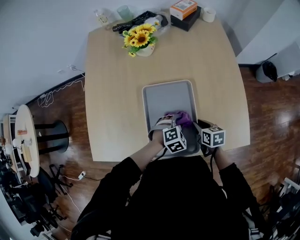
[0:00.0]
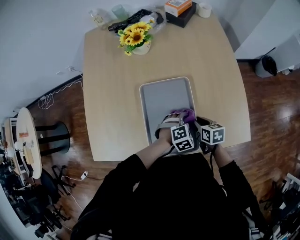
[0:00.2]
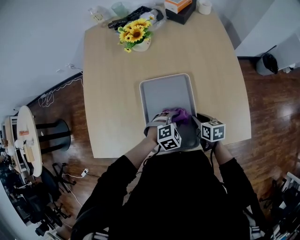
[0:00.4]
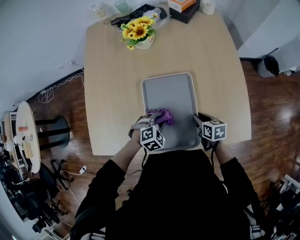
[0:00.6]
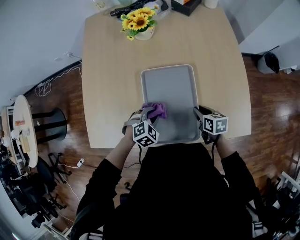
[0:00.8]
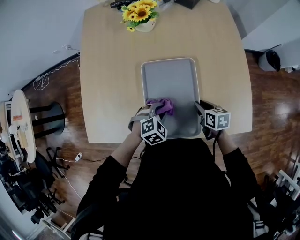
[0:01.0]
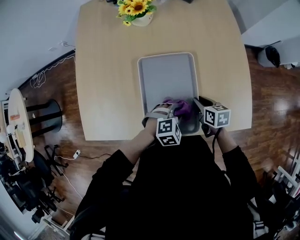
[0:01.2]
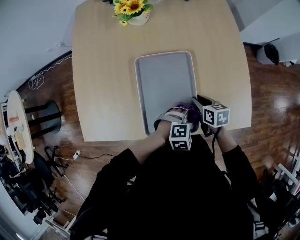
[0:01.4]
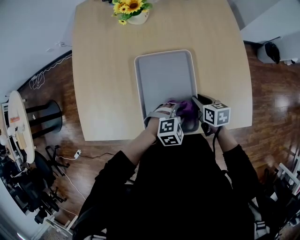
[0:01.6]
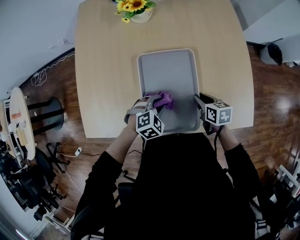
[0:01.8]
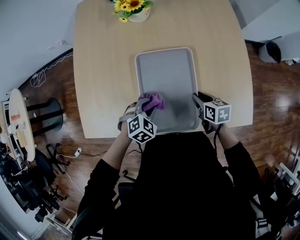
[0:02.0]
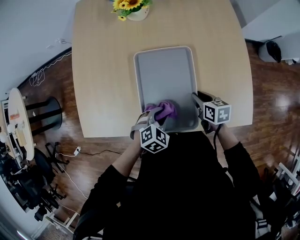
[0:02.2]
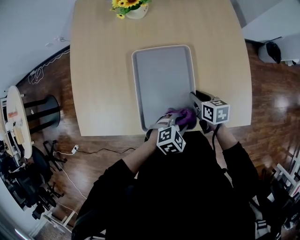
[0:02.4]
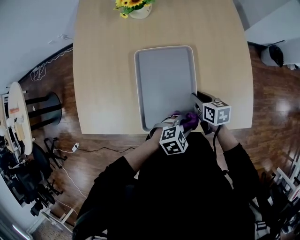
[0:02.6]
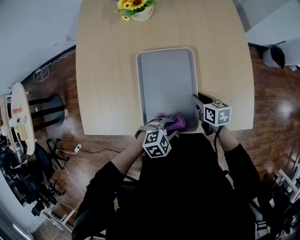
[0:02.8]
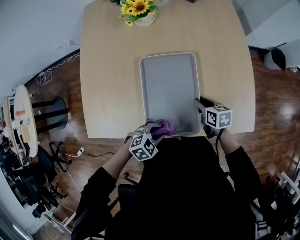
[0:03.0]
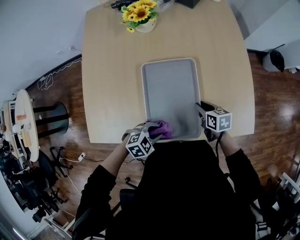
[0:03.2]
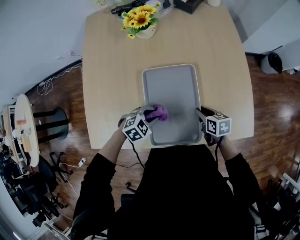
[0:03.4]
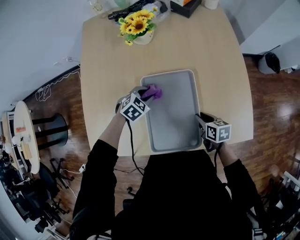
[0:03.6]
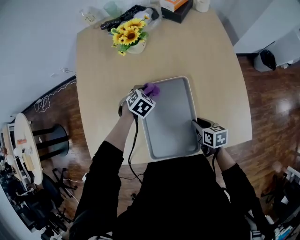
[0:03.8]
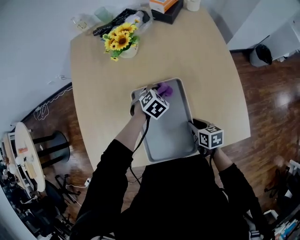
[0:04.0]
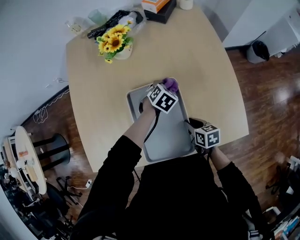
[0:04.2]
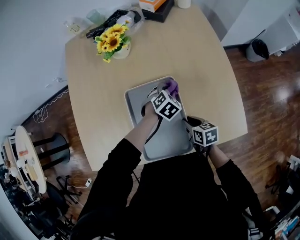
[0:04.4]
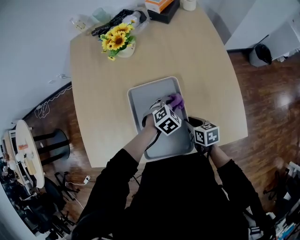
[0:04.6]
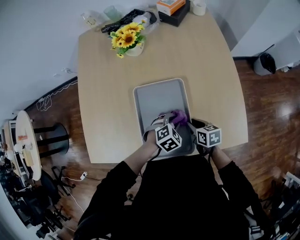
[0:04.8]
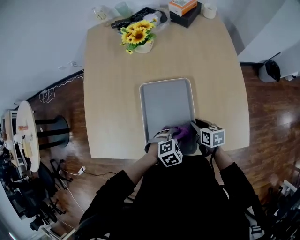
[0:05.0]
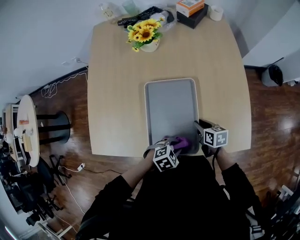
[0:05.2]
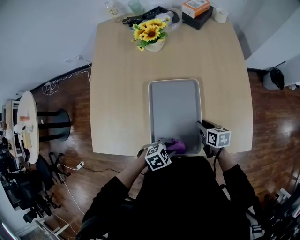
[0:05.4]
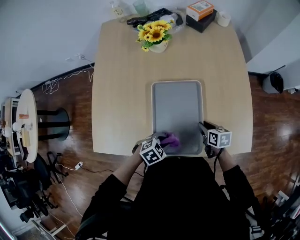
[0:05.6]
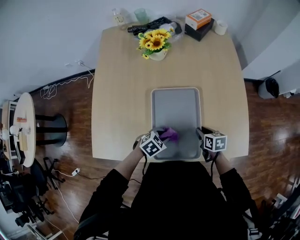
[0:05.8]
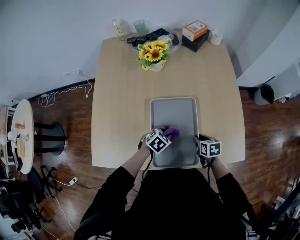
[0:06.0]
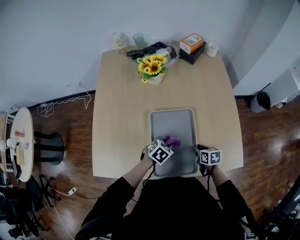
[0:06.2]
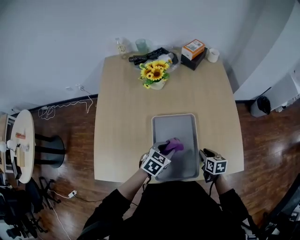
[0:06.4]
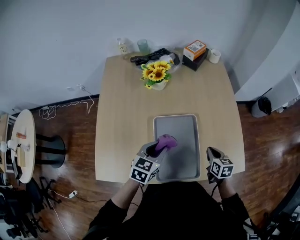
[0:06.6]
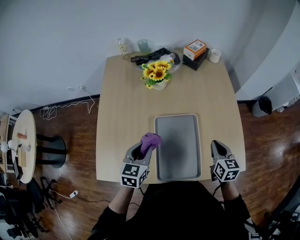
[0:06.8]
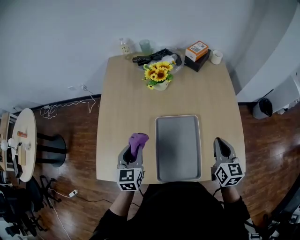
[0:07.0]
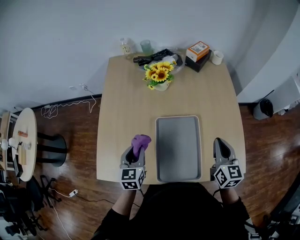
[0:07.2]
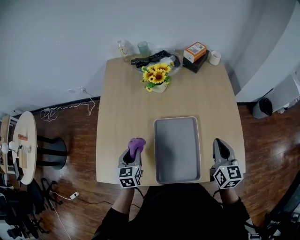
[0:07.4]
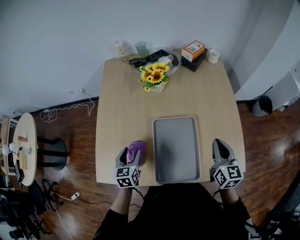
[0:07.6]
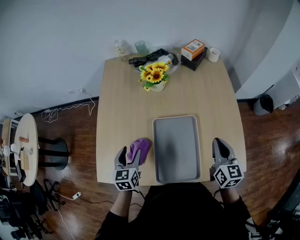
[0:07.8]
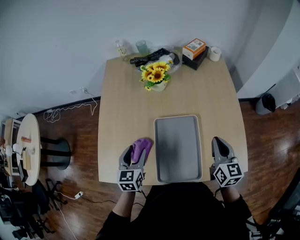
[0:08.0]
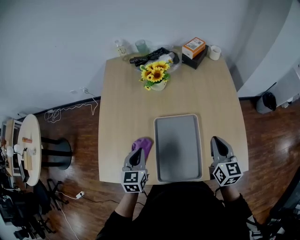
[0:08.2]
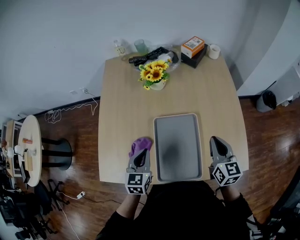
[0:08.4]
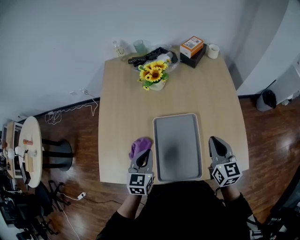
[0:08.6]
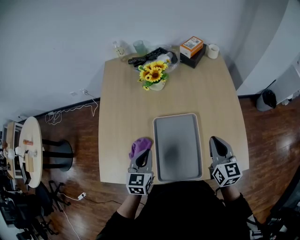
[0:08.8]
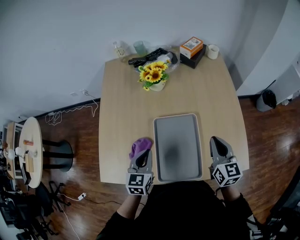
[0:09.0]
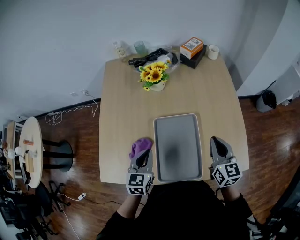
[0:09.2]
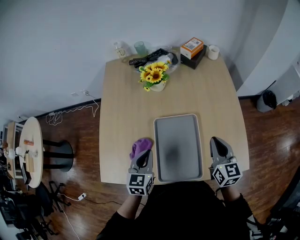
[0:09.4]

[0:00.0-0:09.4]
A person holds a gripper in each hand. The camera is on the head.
0:00.0 to 0:01.6: The left gripper goes left and right, some 20 cm each way, reversing 3 times.
0:01.6 to 0:03.2: The left gripper changes place by approximately 15 cm.
0:03.2 to 0:04.8: The left gripper heads forward and to the right, covering about 20 cm.
0:04.8 to 0:06.2: The left gripper changes its angle by approximately 20 degrees.
0:06.2 to 0:07.8: The left gripper goes roughly 25 cm to the left and upward, rotates roughly 50 degrees, and opens its fingers; the right gripper goes some 25 cm upward, angles its fingers upward, by about 40 degrees, and closes.
0:07.8 to 0:09.4: The left gripper shifts approximately 10 cm to the right, and closes up.

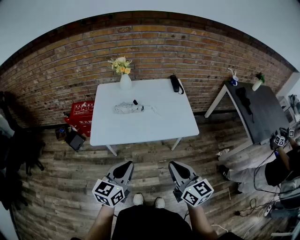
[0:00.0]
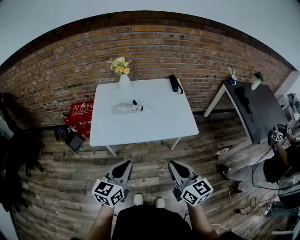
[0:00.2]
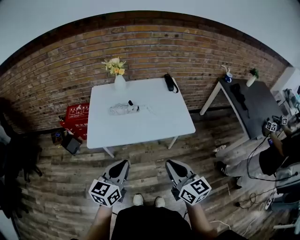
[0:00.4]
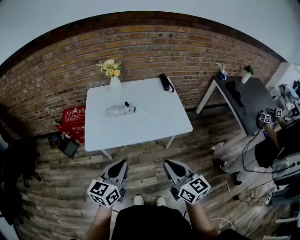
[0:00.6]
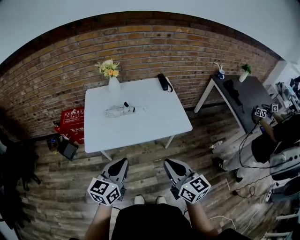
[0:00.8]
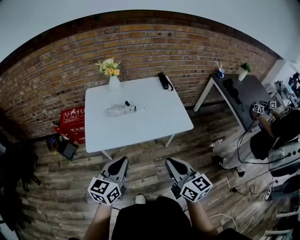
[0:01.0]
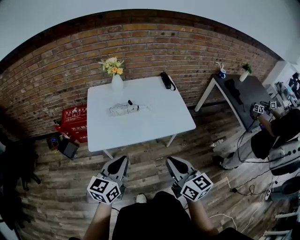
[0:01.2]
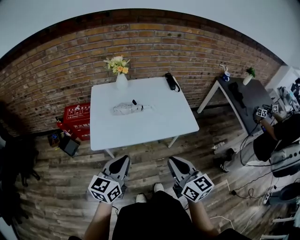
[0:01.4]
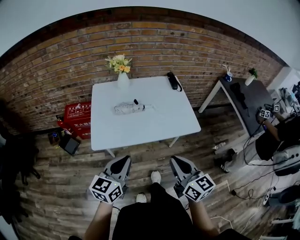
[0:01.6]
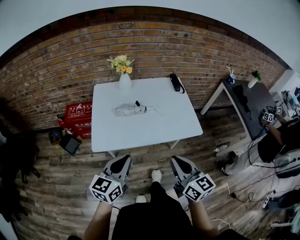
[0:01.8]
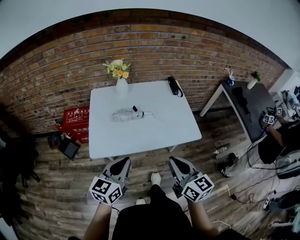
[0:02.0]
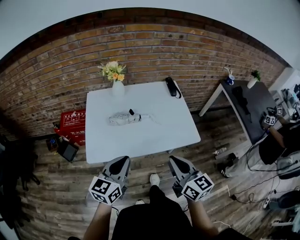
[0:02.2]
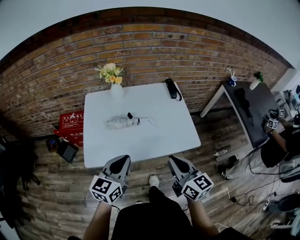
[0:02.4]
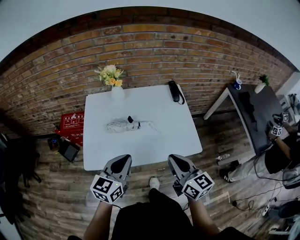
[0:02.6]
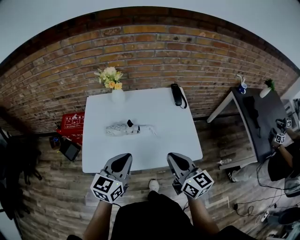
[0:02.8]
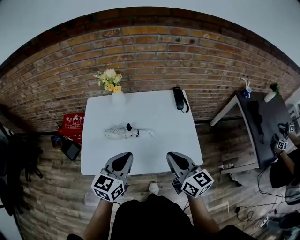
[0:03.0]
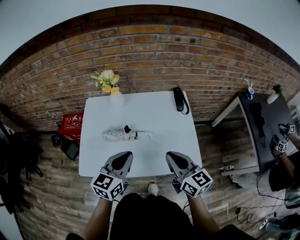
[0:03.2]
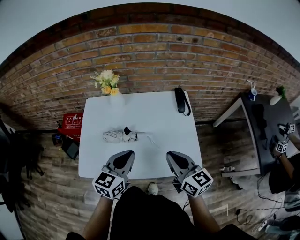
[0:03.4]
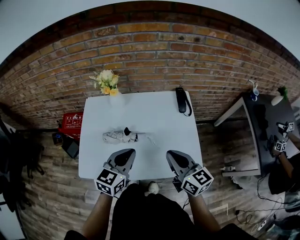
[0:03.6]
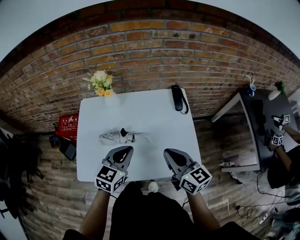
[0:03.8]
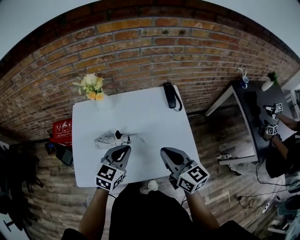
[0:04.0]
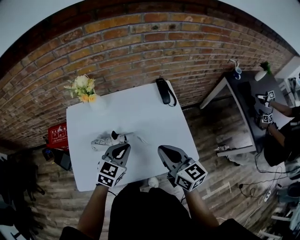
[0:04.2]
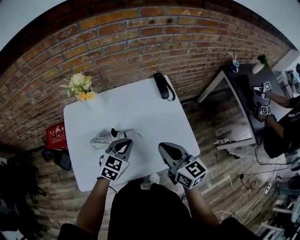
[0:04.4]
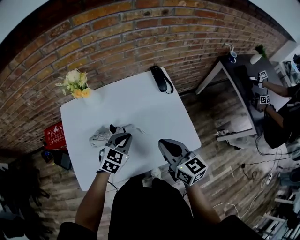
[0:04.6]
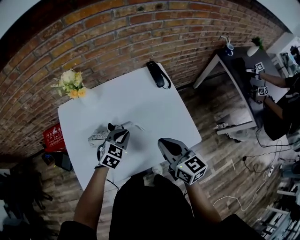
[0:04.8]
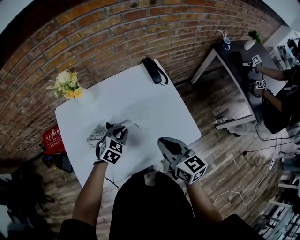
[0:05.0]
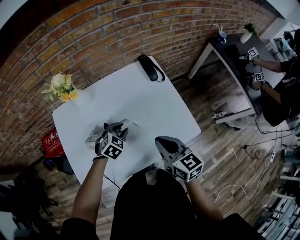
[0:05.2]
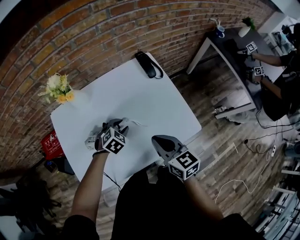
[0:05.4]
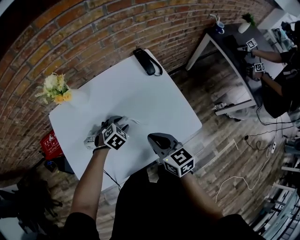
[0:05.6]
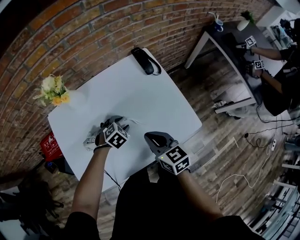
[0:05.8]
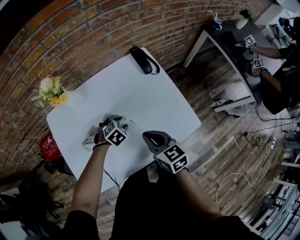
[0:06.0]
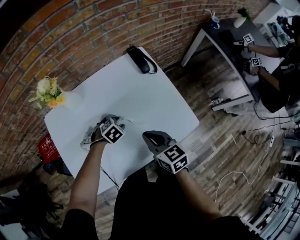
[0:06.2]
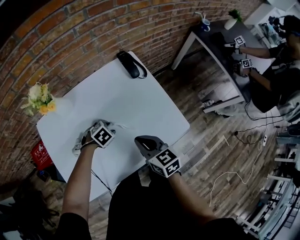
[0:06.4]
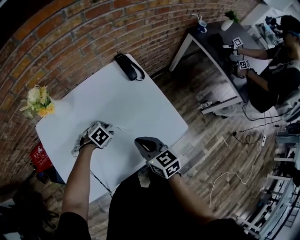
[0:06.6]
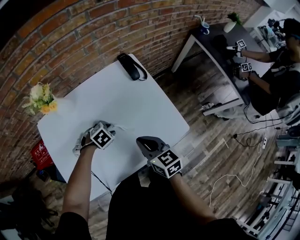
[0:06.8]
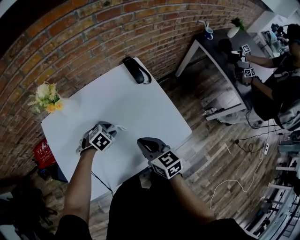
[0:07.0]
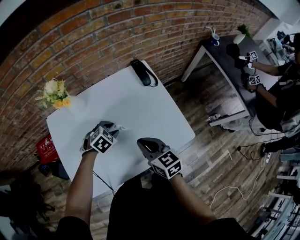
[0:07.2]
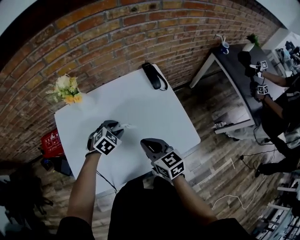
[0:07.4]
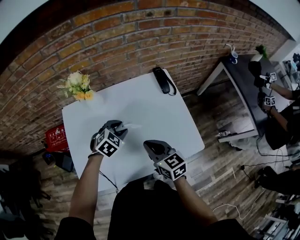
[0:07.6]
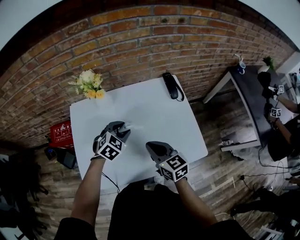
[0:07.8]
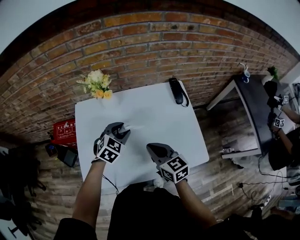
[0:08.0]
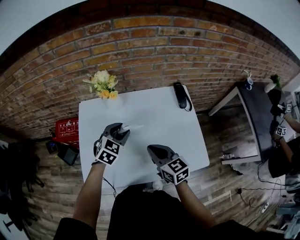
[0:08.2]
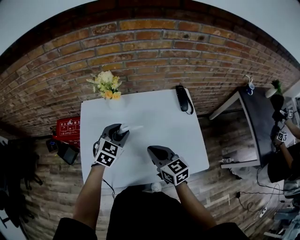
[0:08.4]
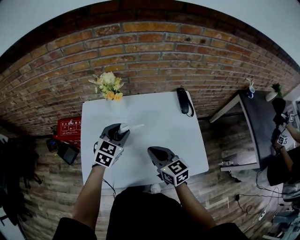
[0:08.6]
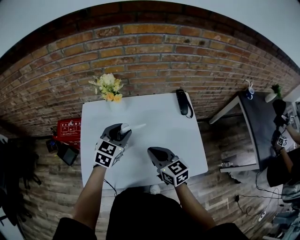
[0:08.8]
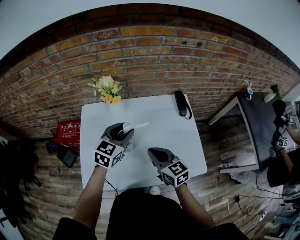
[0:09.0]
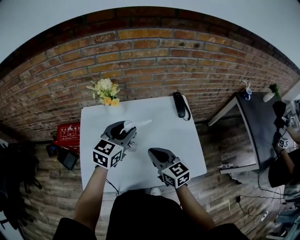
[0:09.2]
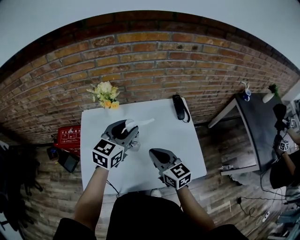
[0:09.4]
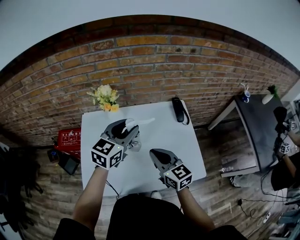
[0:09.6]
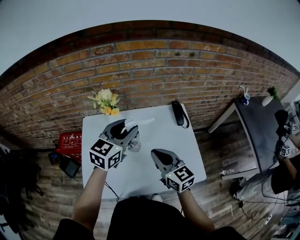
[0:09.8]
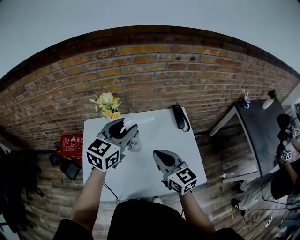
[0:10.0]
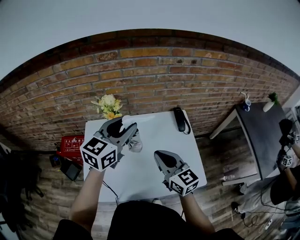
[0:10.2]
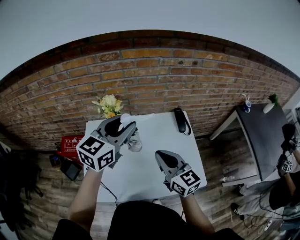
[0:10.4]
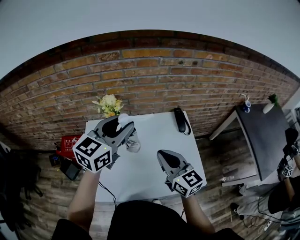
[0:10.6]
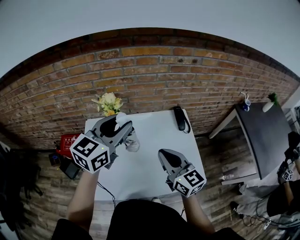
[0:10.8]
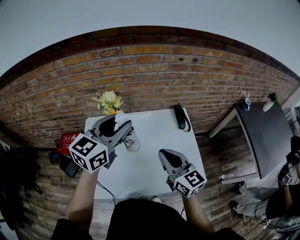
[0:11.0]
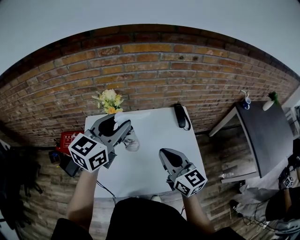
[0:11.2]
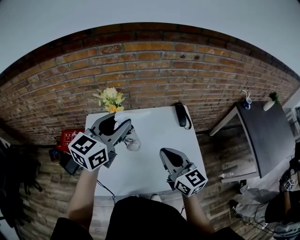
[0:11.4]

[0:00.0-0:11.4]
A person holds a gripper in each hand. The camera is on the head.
0:00.0 to 0:01.4: The grippers both shift to the left by about 5 cm.
0:01.4 to 0:02.8: The two grippers go some 20 cm forward.
0:02.8 to 0:04.2: The left gripper shifts about 20 cm forward, downward and to the right, and rotates approximately 20 degrees. Meanwhile the right gripper goes some 10 cm forward.
0:04.2 to 0:05.6: The right gripper moves downward, approximately 10 cm. Meanwhile the left gripper goes approximately 15 cm downward, angles its fingers downward, by some 30 degrees, and opens up.
0:05.6 to 0:07.2: There are only small adjustments of the grippers.
0:07.2 to 0:08.6: The left gripper heads upward and to the left, covering approximately 20 cm, and points its fingers some 30 degrees further upward. The right gripper travels to the left by about 10 cm.
0:08.6 to 0:10.0: The right gripper moves upward, approximately 10 cm, while the left gripper goes some 15 cm upward, and turns by roughly 20 degrees.
0:10.0 to 0:11.4: The left gripper changes place by some 5 cm.

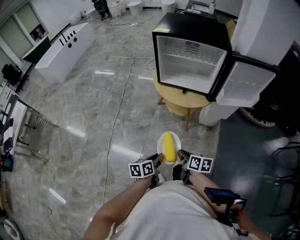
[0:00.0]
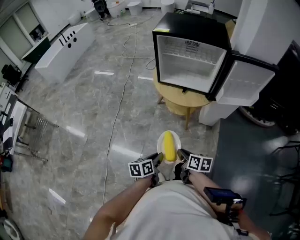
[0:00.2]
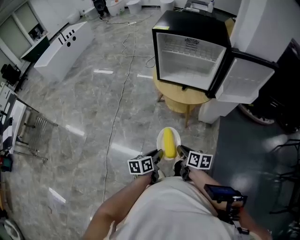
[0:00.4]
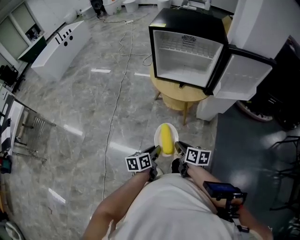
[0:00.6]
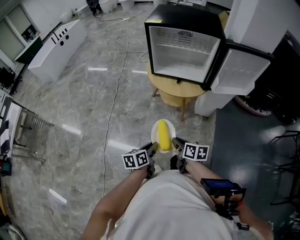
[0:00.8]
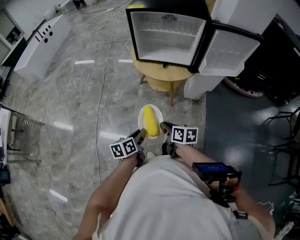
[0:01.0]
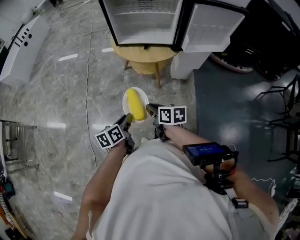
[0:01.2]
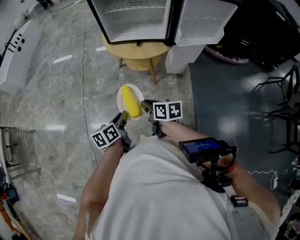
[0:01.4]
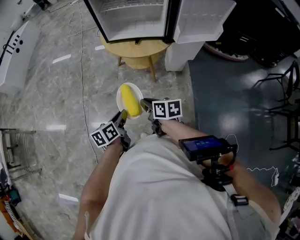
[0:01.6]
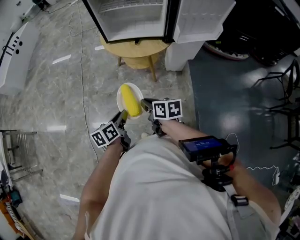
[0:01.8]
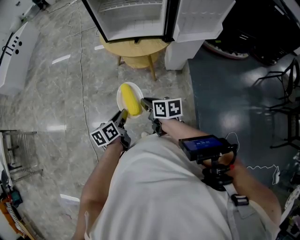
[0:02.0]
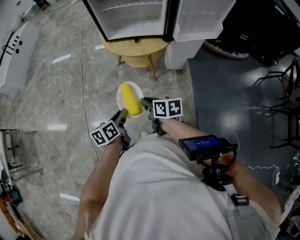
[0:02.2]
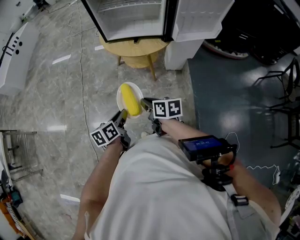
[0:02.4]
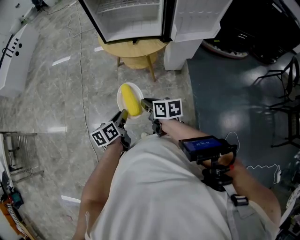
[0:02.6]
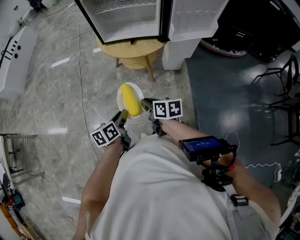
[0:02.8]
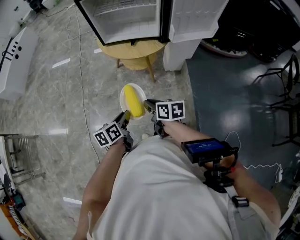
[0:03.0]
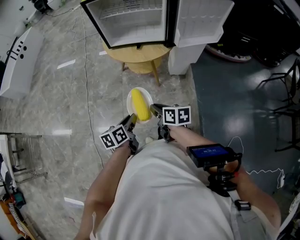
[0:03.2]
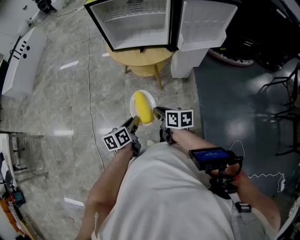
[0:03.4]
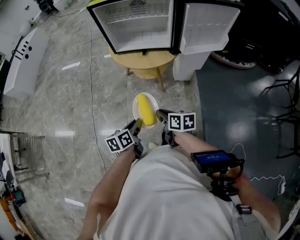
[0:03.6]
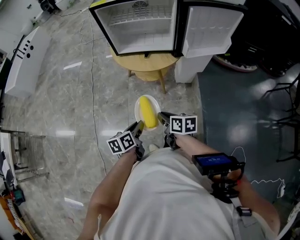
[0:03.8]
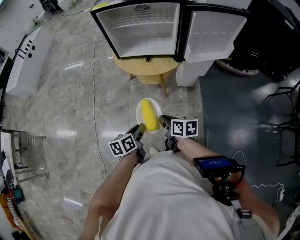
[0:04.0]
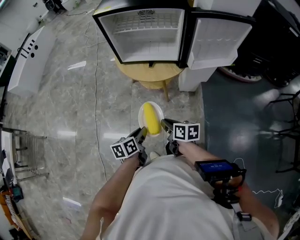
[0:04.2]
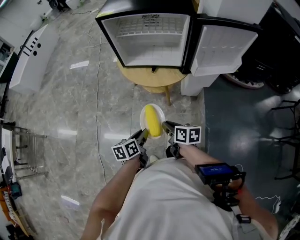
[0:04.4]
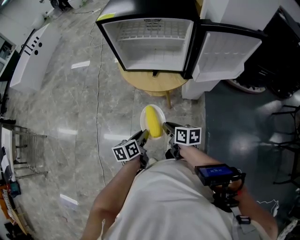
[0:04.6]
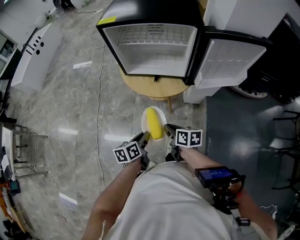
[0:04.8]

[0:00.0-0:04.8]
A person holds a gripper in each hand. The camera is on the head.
0:00.0 to 0:03.2: There are only small adjustments of the grippers.
0:03.2 to 0:04.8: The grippers both shift forward by roughly 15 cm.
